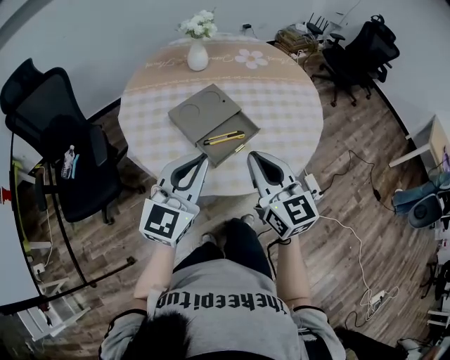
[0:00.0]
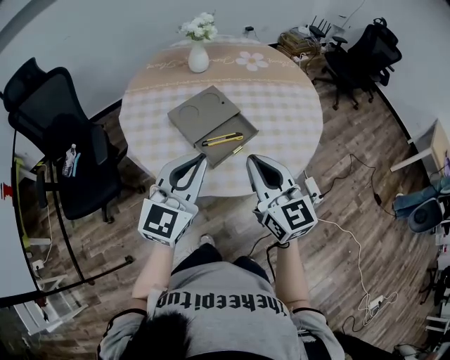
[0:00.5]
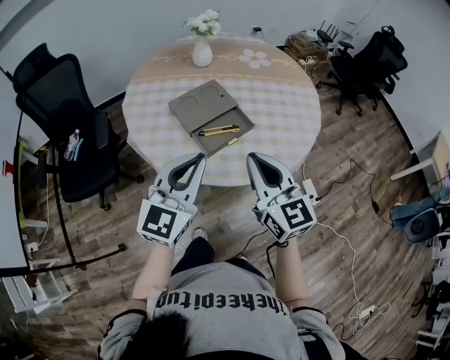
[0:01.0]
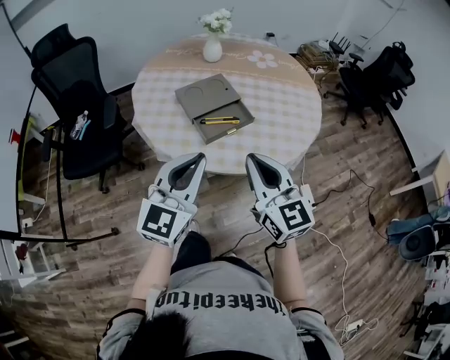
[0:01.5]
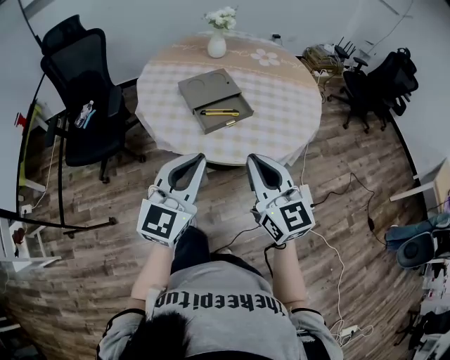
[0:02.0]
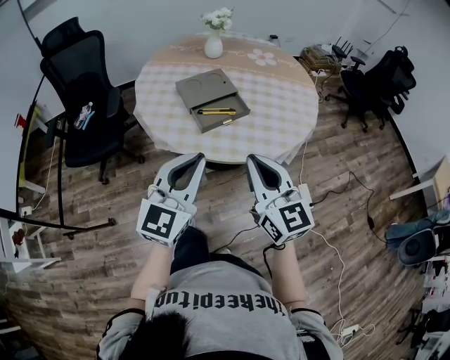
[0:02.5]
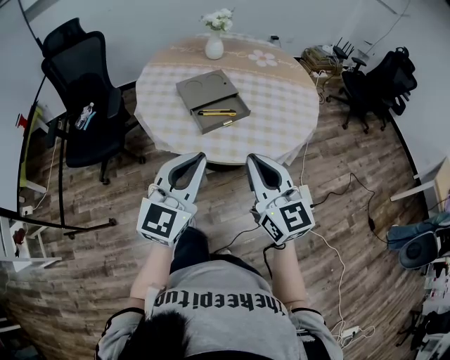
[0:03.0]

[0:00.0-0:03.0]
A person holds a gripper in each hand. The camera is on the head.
0:00.0 to 0:01.5: The two grippers go roughly 10 cm backward and to the right.
0:01.5 to 0:03.0: The grippers both shift backward by roughly 5 cm.

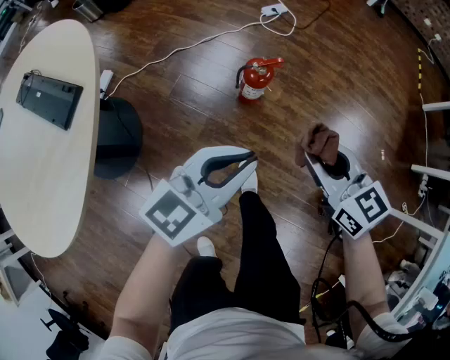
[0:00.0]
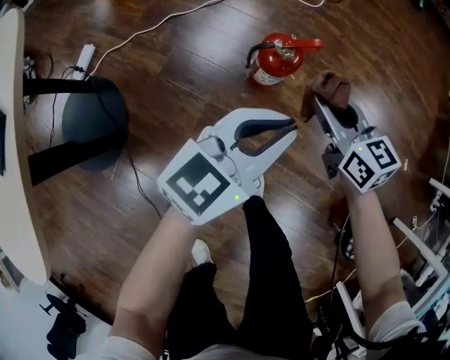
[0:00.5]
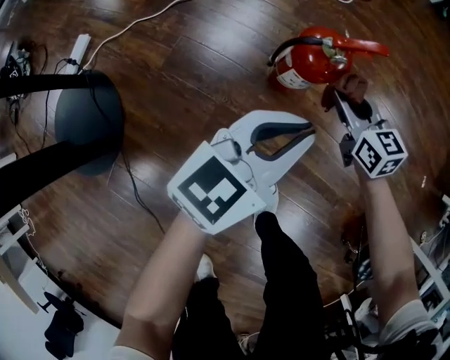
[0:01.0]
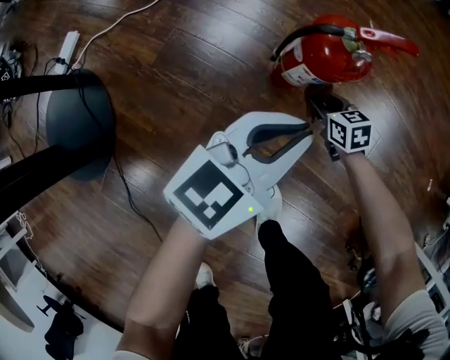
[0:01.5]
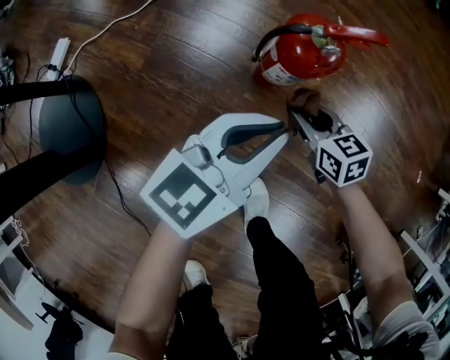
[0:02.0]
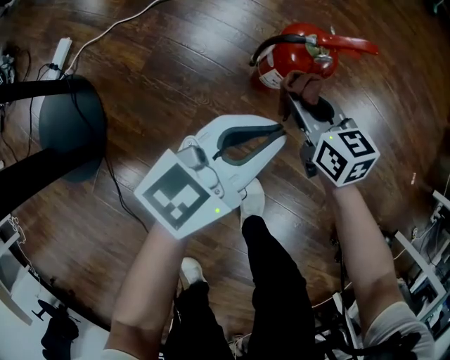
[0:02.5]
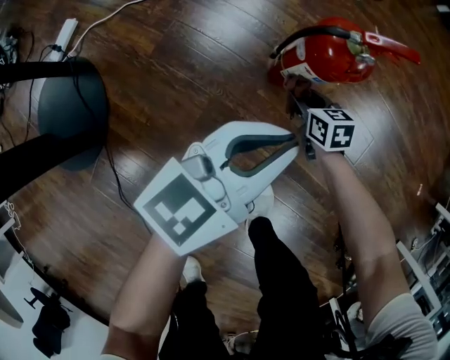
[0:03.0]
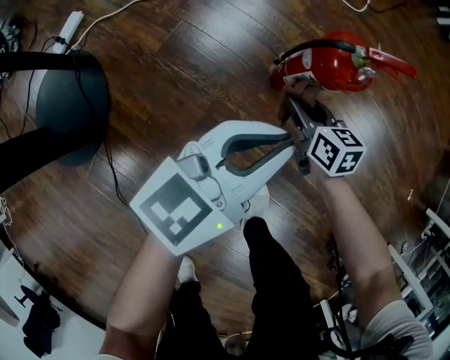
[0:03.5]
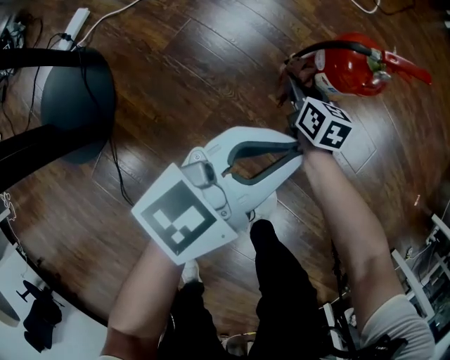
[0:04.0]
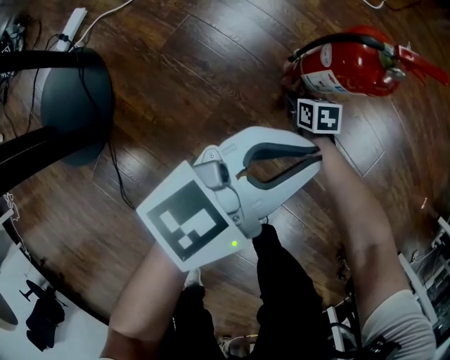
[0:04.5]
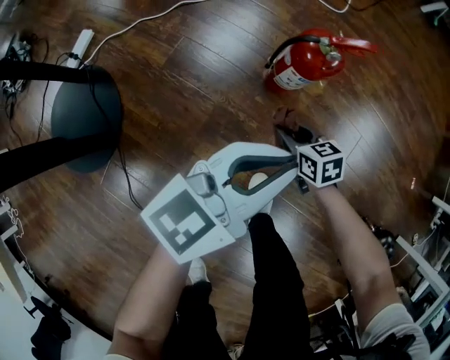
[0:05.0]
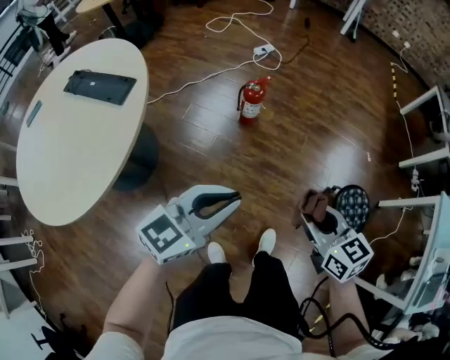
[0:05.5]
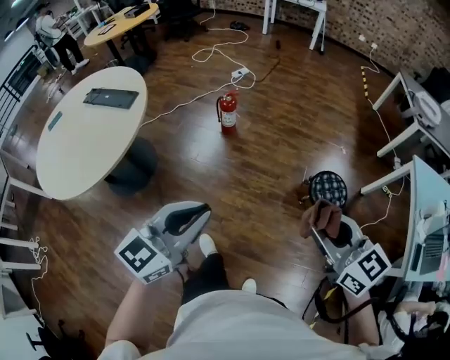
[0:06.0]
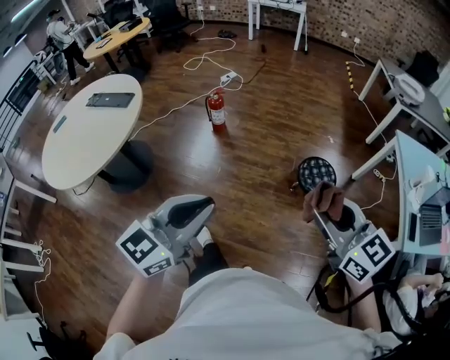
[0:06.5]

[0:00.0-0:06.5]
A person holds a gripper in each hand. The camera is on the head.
0:00.0 to 0:02.0: Both grippers move downward and forward, some 40 cm.
0:02.0 to 0:04.5: The right gripper moves up and down over approximately 25 cm, changing direction 3 times.
0:04.5 to 0:06.5: Both grippers are carried backward, some 80 cm. The right gripper shifts some 90 cm upward, and angles its fingers upward, by roughly 50 degrees. The left gripper heads upward, covering roughly 60 cm, and turns by about 20 degrees.

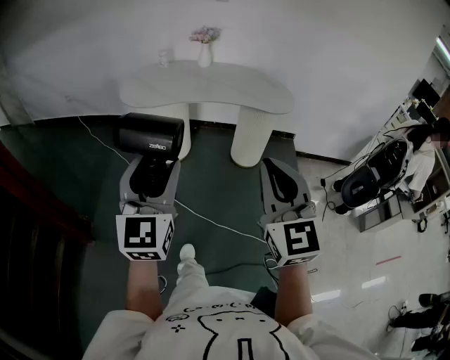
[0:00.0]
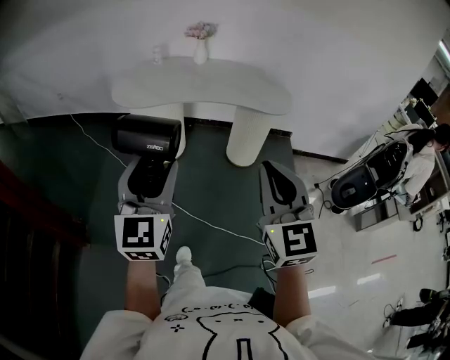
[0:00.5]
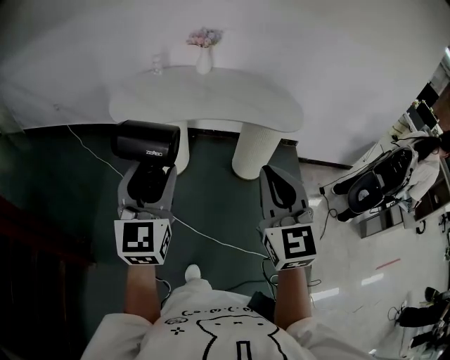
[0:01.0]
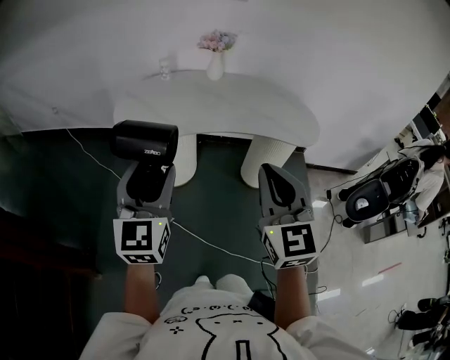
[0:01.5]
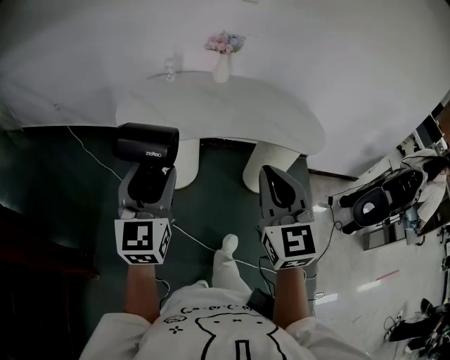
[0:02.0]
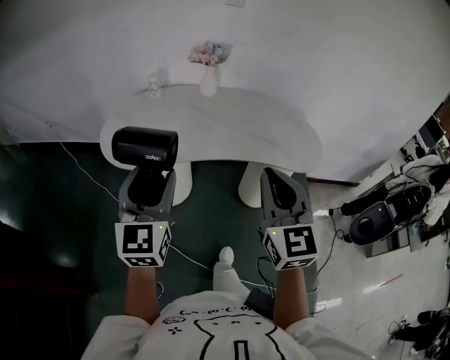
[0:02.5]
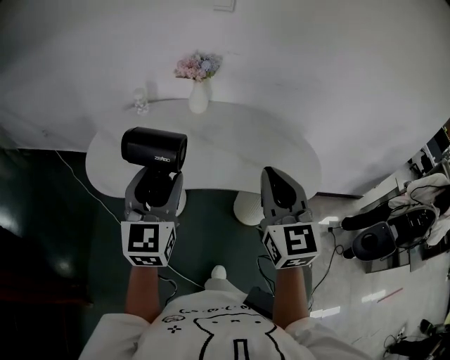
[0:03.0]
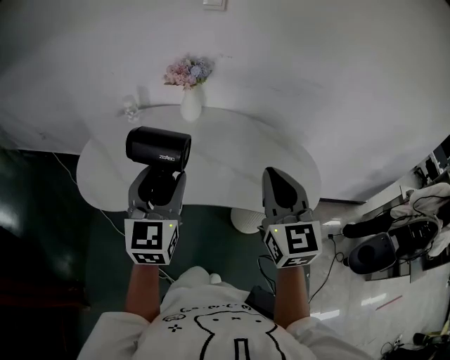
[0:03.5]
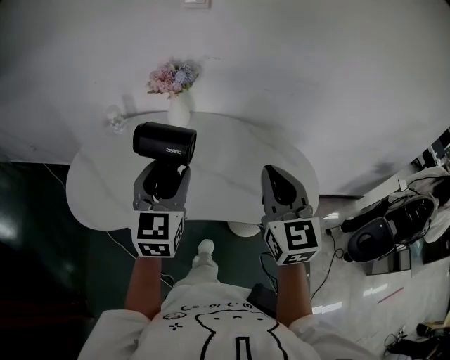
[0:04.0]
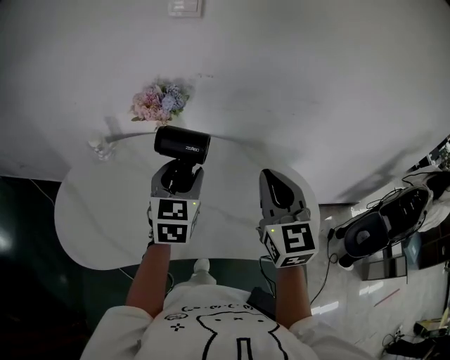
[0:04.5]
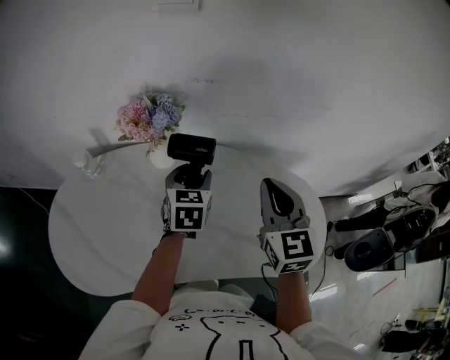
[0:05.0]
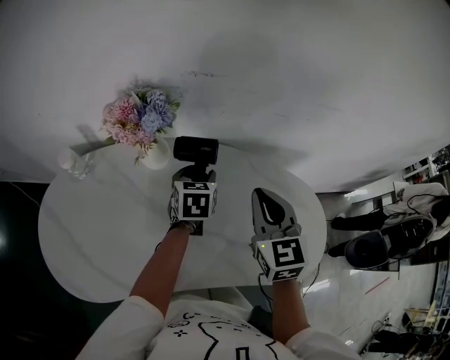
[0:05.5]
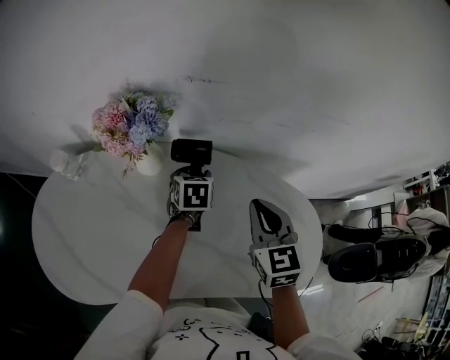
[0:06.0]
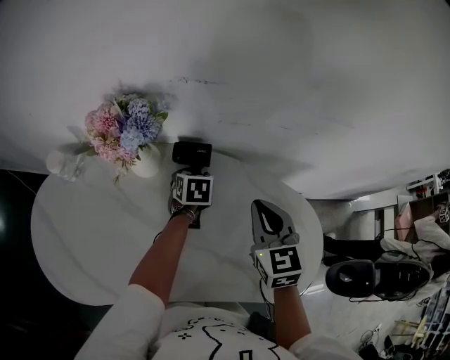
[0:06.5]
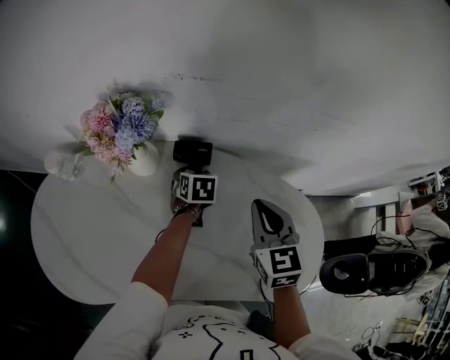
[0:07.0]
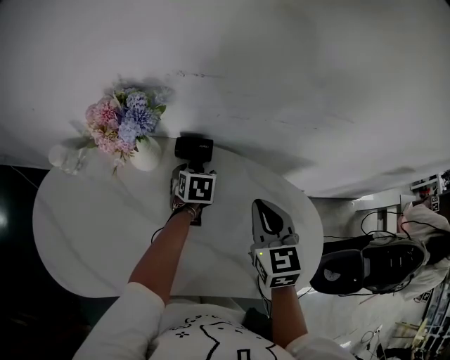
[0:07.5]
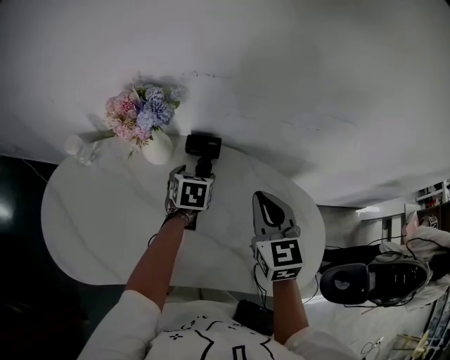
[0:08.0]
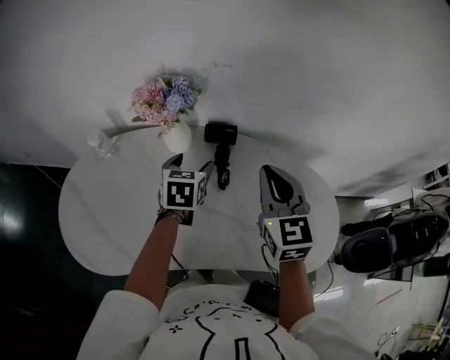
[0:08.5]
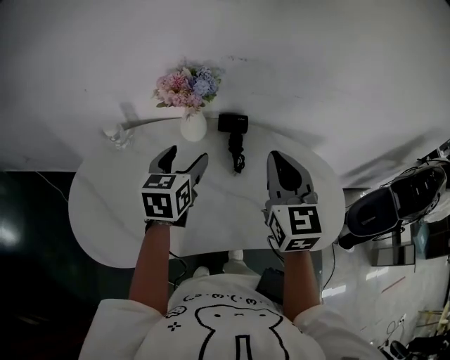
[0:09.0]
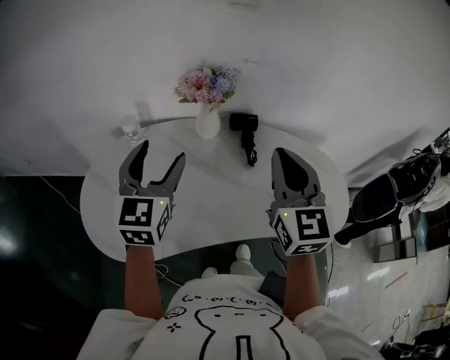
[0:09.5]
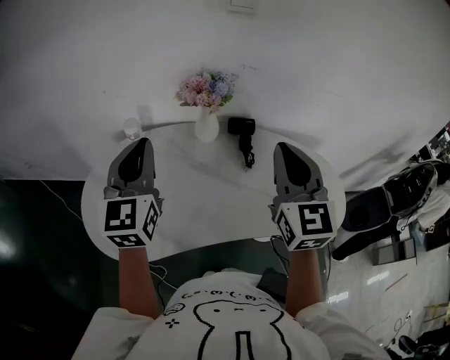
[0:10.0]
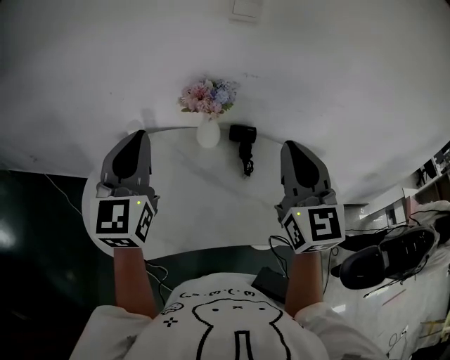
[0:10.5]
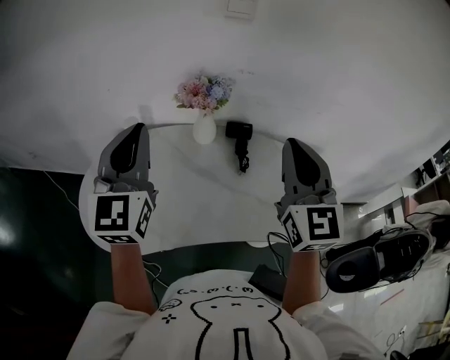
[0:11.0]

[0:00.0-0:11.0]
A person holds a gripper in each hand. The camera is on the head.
0:00.0 to 0:02.0: The left gripper moves forward and to the left, roughly 30 cm; the right gripper heads forward, covering about 30 cm.
0:02.0 to 0:03.5: The grippers both shift forward and to the right by about 35 cm.
0:03.5 to 0:05.5: The left gripper heads forward and downward, covering some 50 cm, and angles its fingers downward, by some 40 degrees. Meanwhile the right gripper moves forward, some 30 cm, and turns by roughly 20 degrees.
0:05.5 to 0:07.5: The left gripper travels downward and forward by about 10 cm. The right gripper moves downward, about 5 cm.
0:07.5 to 0:09.0: The right gripper moves upward, to the left and backward, roughly 20 cm; the left gripper shifts approximately 30 cm upward, backward and to the left, and angles its fingers upward, by about 30 degrees.
0:09.0 to 0:11.0: The right gripper travels upward and backward by some 15 cm. The left gripper goes roughly 25 cm upward, backward and to the left, tips its fingers upward by approximately 30 degrees, and closes its fingers.

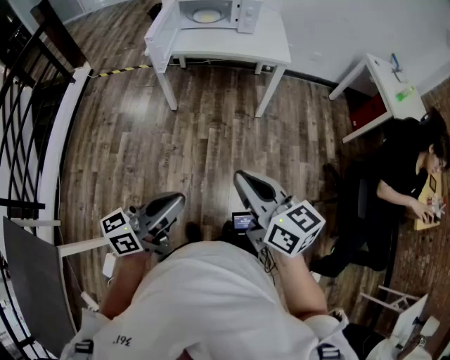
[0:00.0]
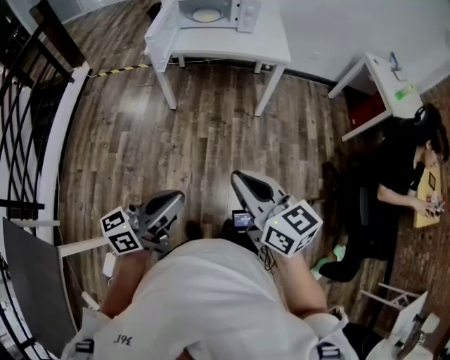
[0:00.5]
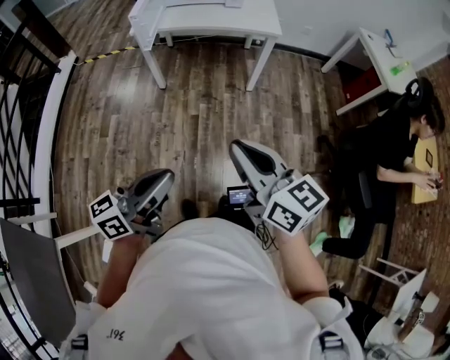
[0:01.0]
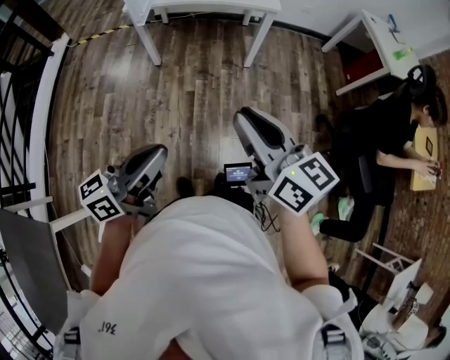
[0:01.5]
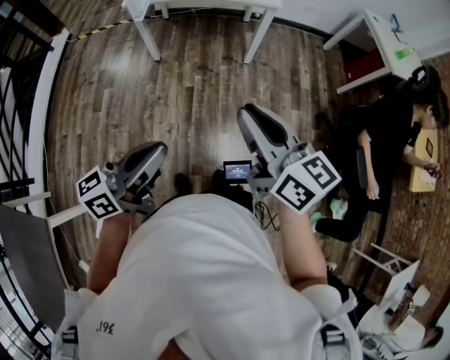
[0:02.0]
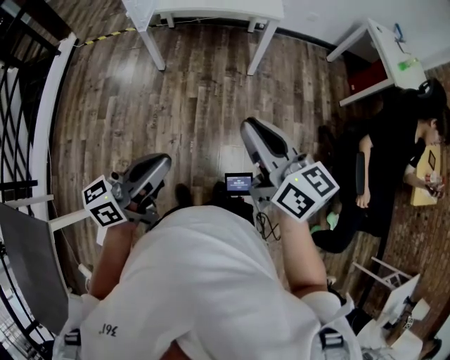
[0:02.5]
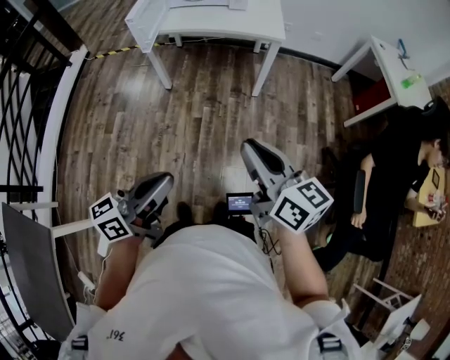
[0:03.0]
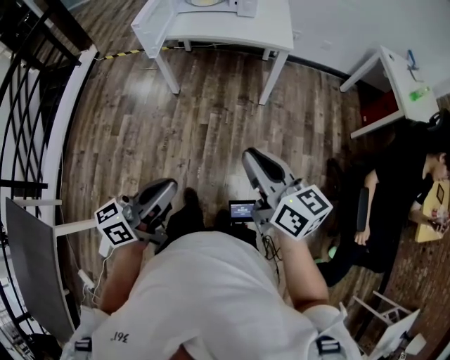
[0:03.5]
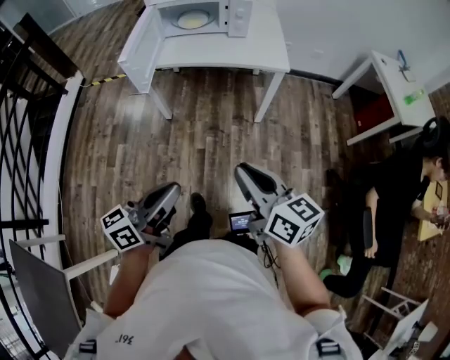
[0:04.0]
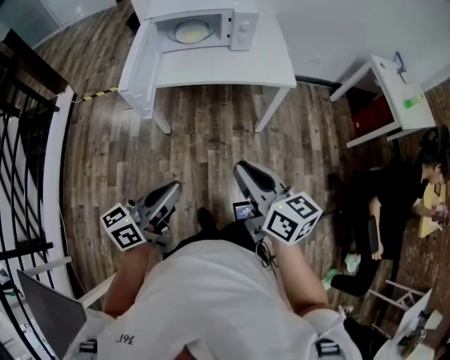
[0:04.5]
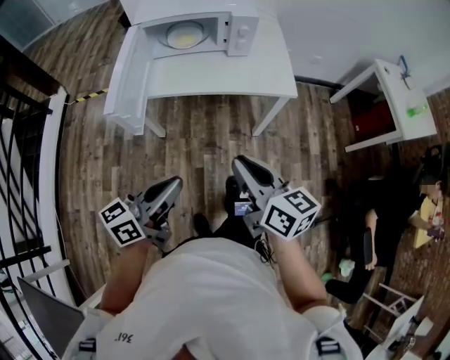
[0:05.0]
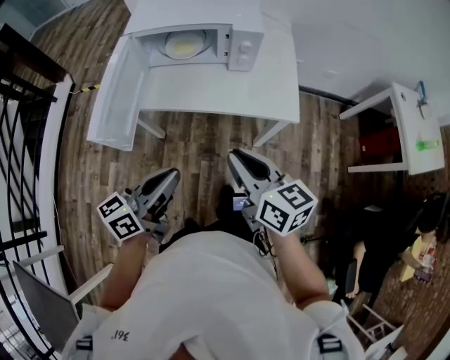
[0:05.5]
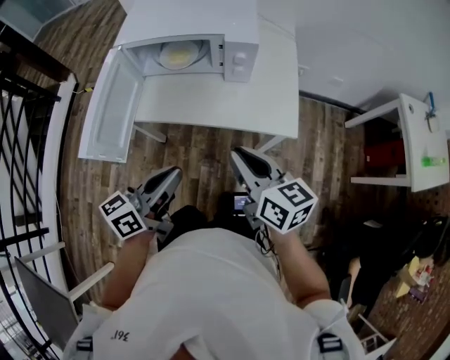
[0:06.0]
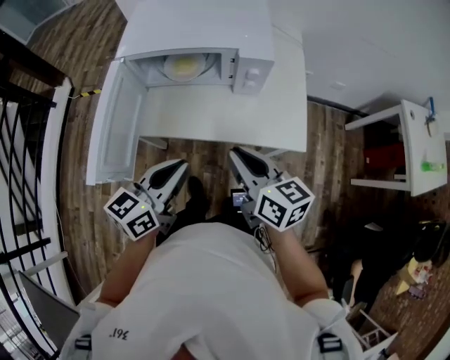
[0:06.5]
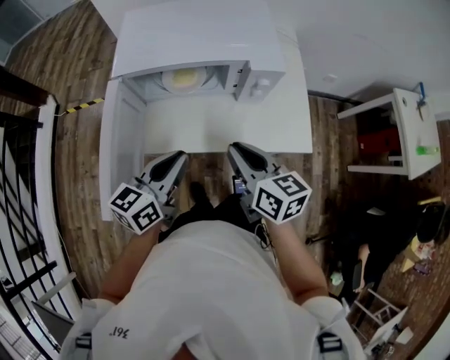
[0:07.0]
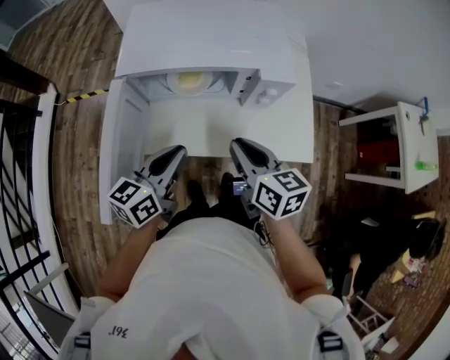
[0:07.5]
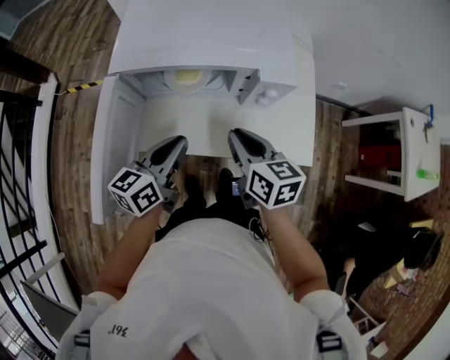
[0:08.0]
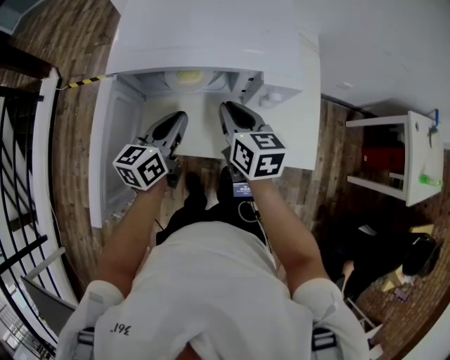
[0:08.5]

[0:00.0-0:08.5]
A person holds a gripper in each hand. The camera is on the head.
0:00.0 to 0:02.0: There are only small adjustments of the grippers.
0:02.0 to 0:04.0: The two grippers go approximately 20 cm forward.
0:04.0 to 0:06.5: The pair of grippers is taken forward, approximately 50 cm. The left gripper rotates about 20 degrees.
0:06.5 to 0:08.5: The two grippers go some 20 cm forward.
